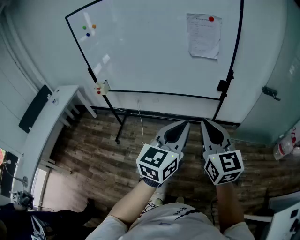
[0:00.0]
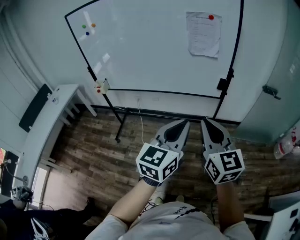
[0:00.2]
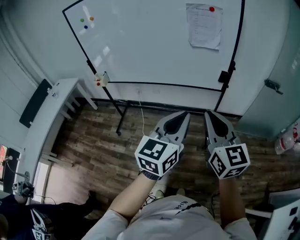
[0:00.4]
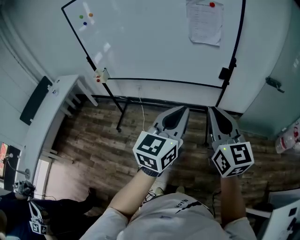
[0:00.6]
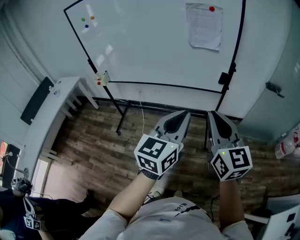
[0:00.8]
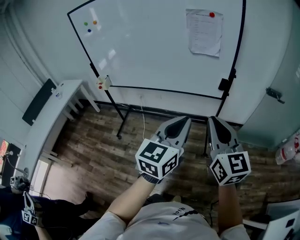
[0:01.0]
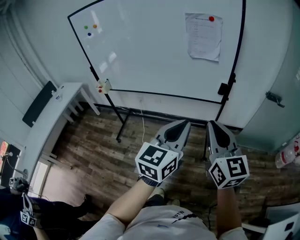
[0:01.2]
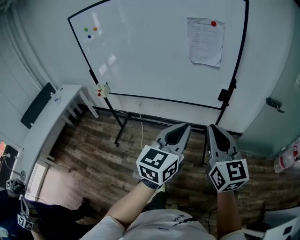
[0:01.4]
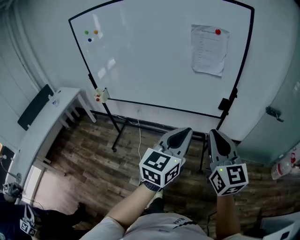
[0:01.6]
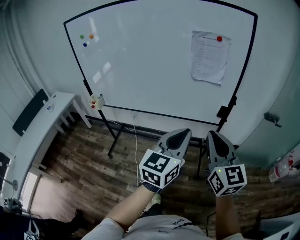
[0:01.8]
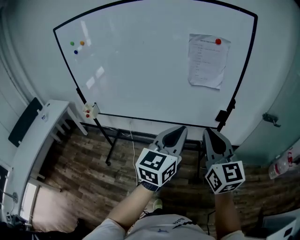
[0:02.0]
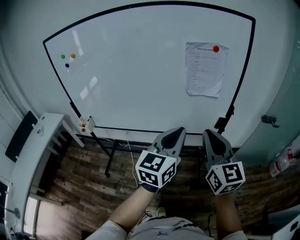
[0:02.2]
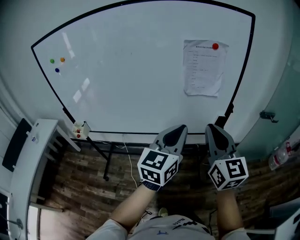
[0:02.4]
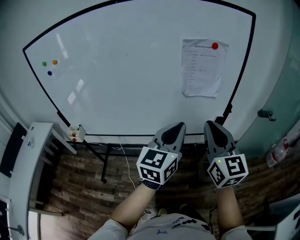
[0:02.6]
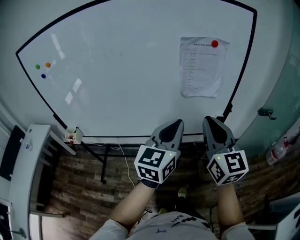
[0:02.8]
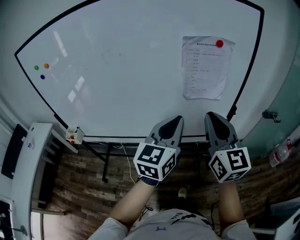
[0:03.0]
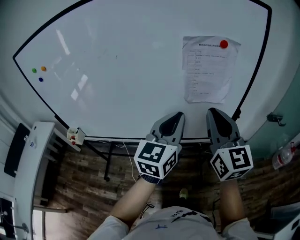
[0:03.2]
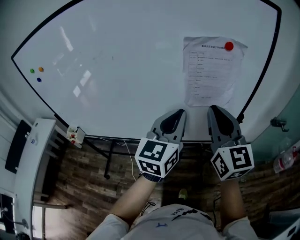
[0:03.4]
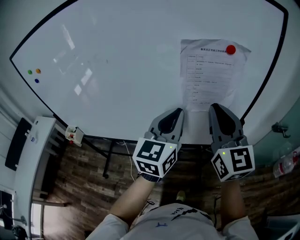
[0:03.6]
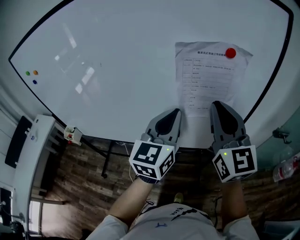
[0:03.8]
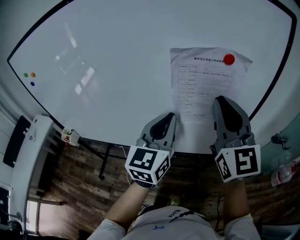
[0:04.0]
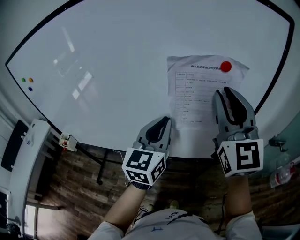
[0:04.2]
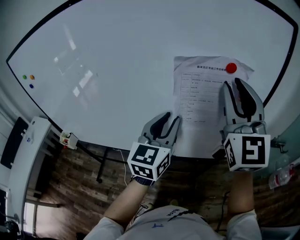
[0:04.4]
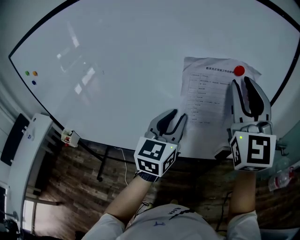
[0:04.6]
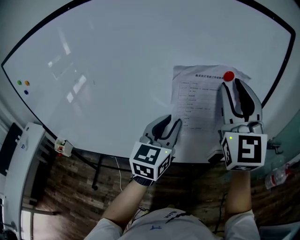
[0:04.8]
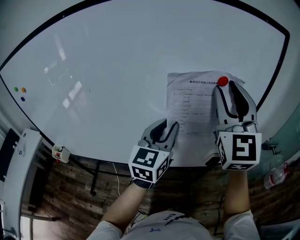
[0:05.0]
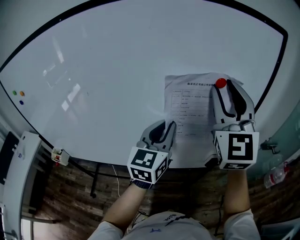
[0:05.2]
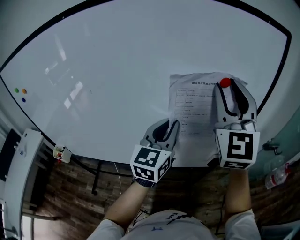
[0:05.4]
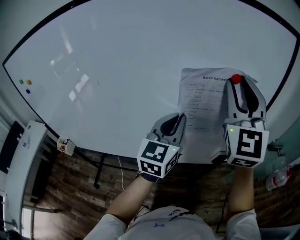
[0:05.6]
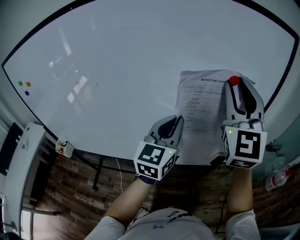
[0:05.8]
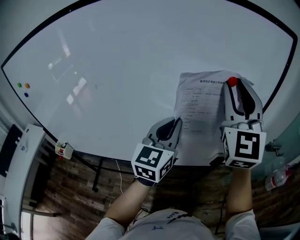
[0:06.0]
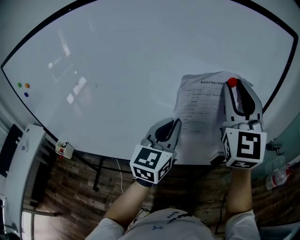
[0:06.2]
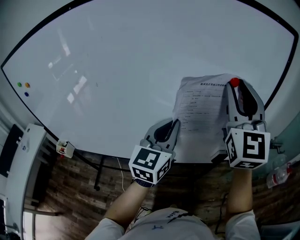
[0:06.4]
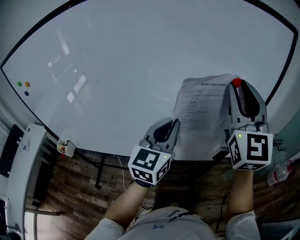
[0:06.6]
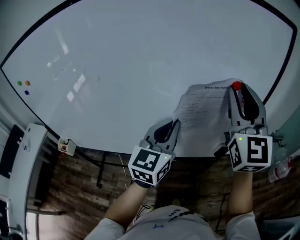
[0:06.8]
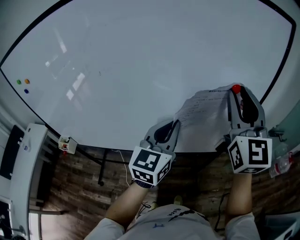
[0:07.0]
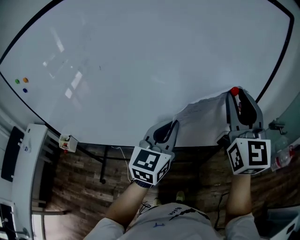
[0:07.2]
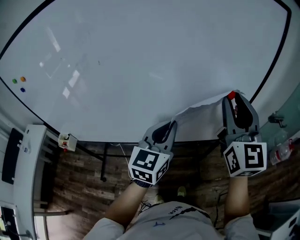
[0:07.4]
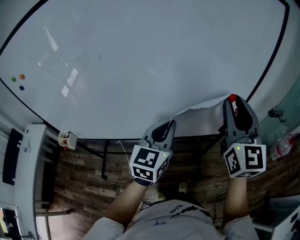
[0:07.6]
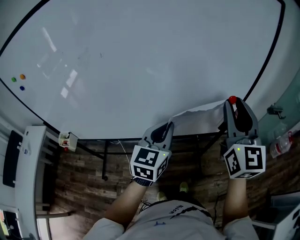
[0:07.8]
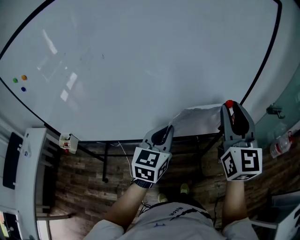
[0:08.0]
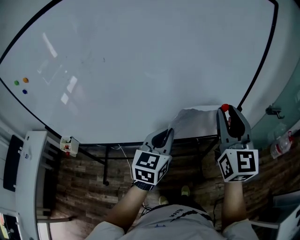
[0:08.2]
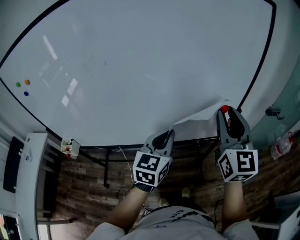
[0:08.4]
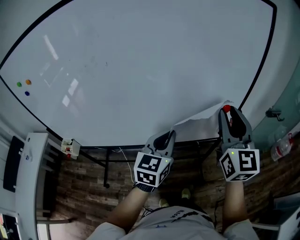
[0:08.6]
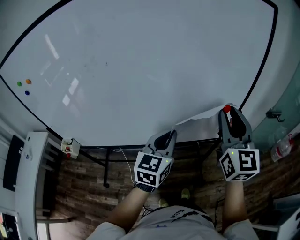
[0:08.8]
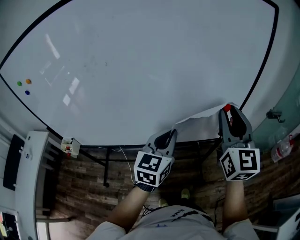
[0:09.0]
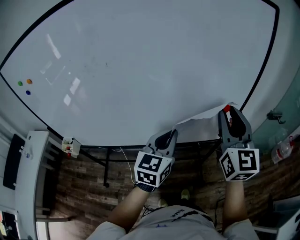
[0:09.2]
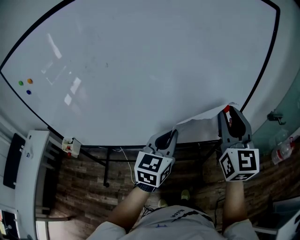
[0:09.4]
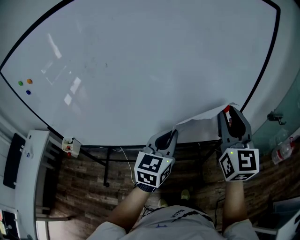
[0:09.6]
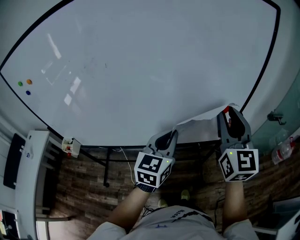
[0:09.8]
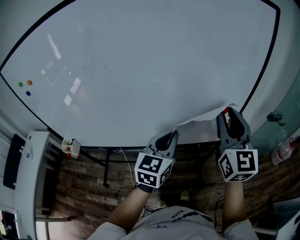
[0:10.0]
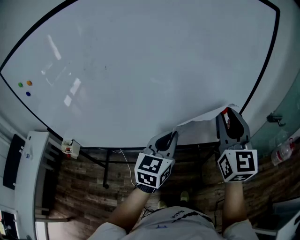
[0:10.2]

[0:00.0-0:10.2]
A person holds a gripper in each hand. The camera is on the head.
0:00.0 to 0:01.4: The right gripper heads to the right and forward, covering about 10 cm. Meanwhile the left gripper moves forward, some 5 cm.
0:01.4 to 0:03.0: The two grippers go roughly 30 cm forward.
0:03.0 to 0:04.4: The right gripper goes roughly 20 cm forward and upward, changes its angle by some 20 degrees, and opens up; the left gripper moves forward, some 15 cm, and opens its fingers.
0:04.4 to 0:05.8: The left gripper closes.
0:05.8 to 0:07.2: The left gripper travels backward and downward by roughly 10 cm. The right gripper goes roughly 10 cm downward and backward.
0:07.2 to 0:08.8: The grippers both shift downward and backward by about 10 cm.
0:08.8 to 0:10.2: Neither gripper changes place.

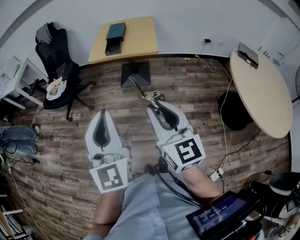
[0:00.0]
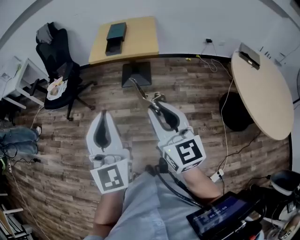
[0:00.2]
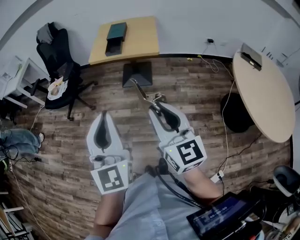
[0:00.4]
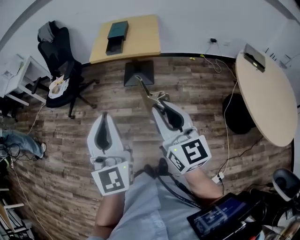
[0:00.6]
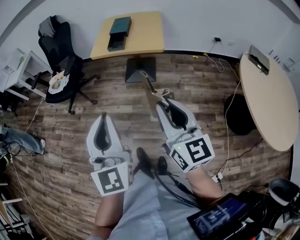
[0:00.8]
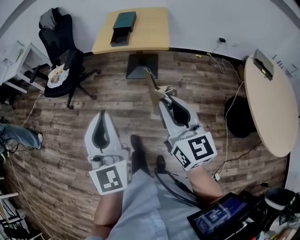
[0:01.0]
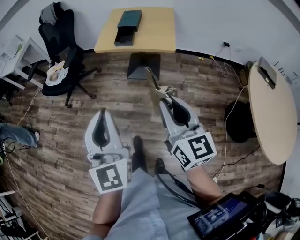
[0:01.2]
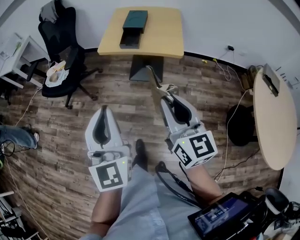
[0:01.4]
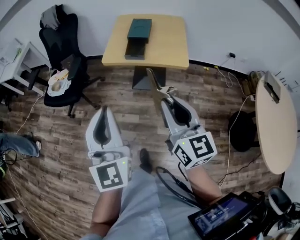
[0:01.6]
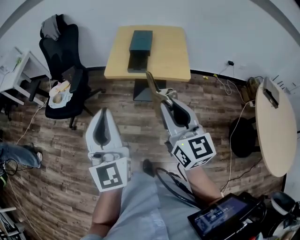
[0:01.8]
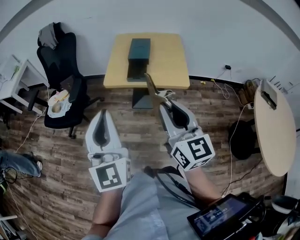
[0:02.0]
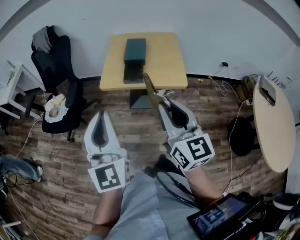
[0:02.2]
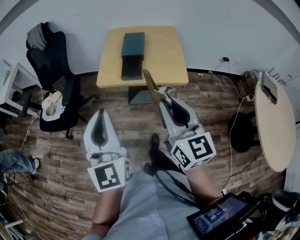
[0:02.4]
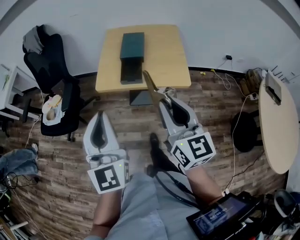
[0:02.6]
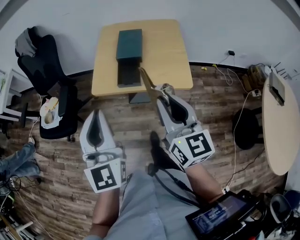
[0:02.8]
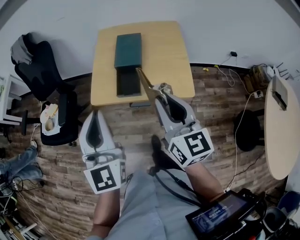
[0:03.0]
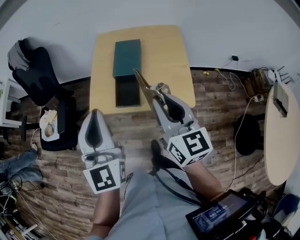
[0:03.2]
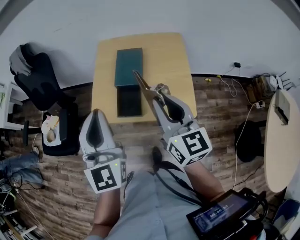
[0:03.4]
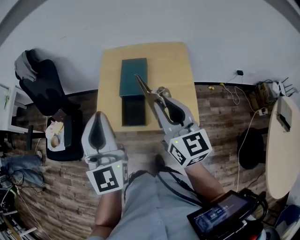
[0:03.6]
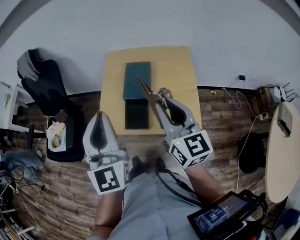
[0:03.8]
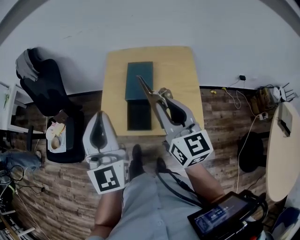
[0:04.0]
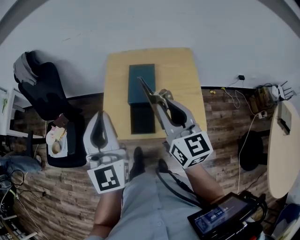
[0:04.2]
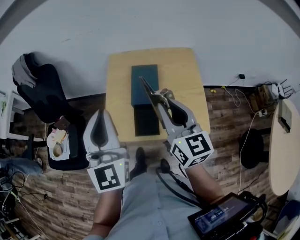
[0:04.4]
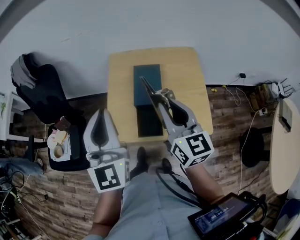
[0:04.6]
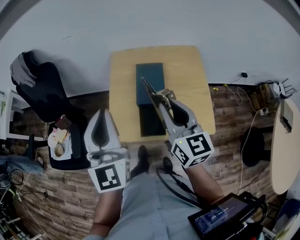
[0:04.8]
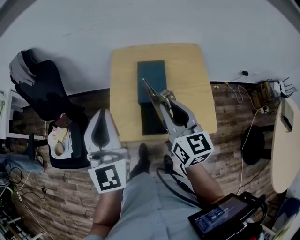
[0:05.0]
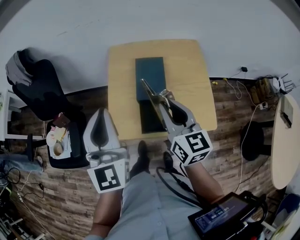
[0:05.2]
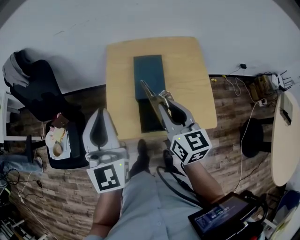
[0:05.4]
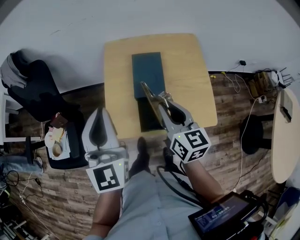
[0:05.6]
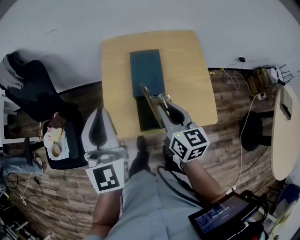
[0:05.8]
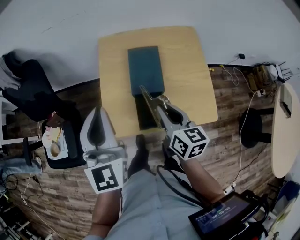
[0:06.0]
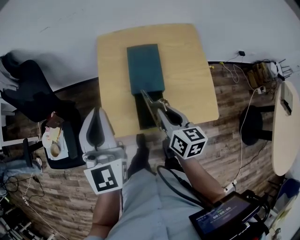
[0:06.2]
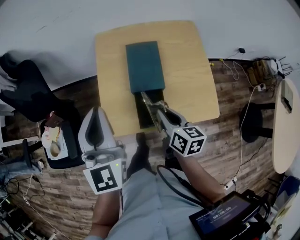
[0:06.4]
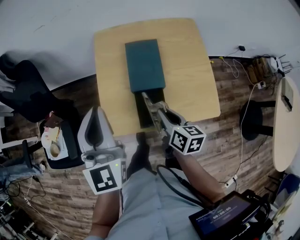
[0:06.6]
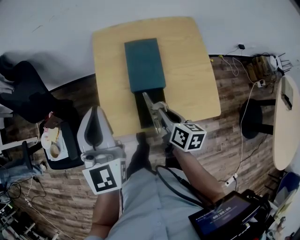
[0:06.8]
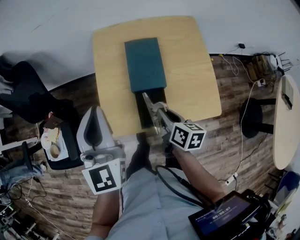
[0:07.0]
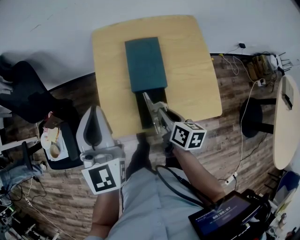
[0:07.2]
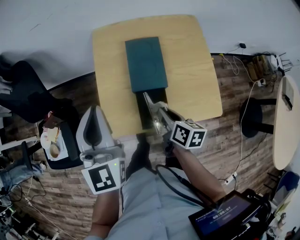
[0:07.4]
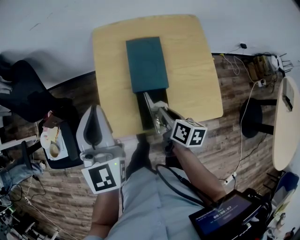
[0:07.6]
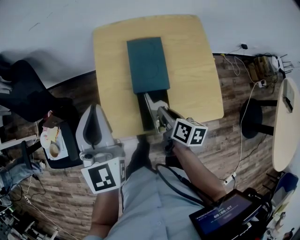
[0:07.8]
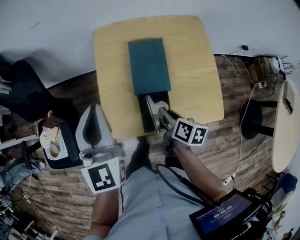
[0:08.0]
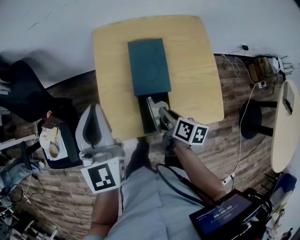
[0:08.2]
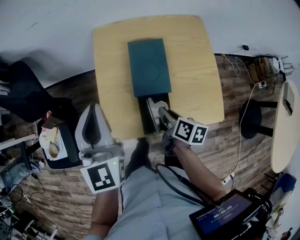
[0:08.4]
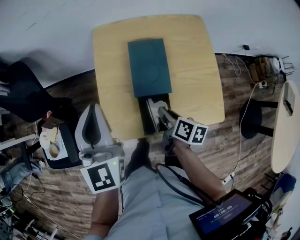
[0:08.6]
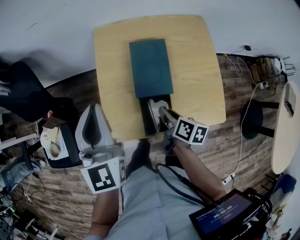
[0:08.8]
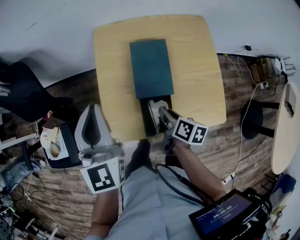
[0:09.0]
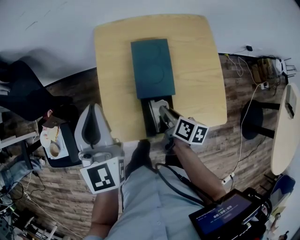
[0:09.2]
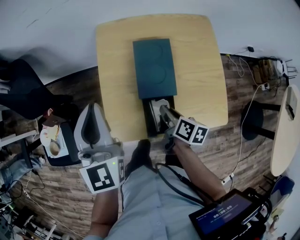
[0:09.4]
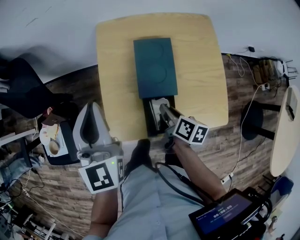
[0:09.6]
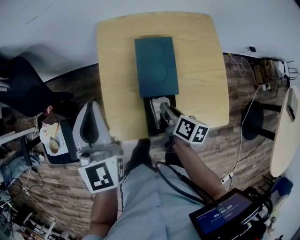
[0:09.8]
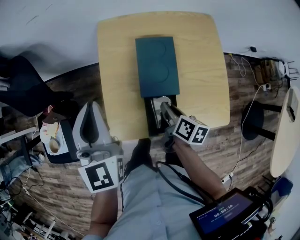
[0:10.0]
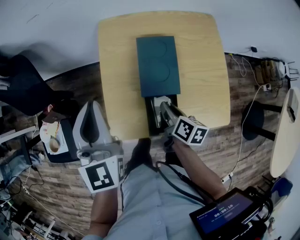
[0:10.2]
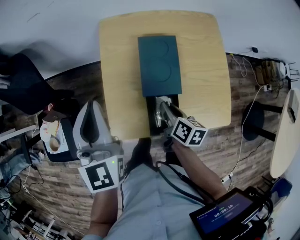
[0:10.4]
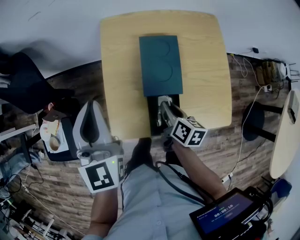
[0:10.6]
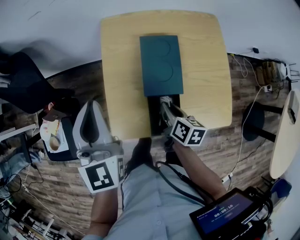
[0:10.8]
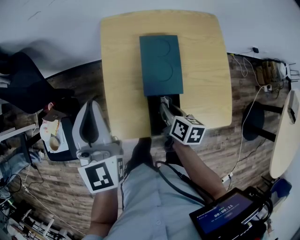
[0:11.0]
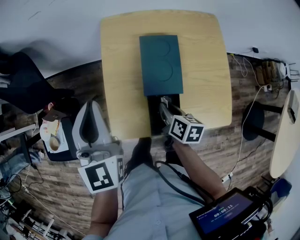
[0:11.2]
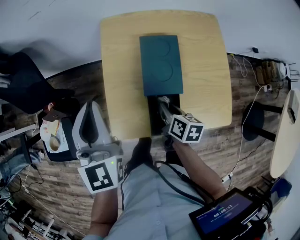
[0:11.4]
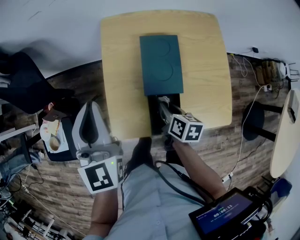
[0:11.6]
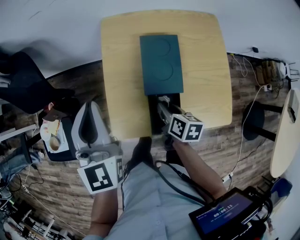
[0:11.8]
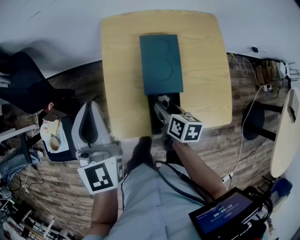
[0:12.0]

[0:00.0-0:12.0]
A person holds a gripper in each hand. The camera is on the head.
0:00.0 to 0:01.6: The grippers both shift forward by about 25 cm.
0:01.6 to 0:03.0: Both grippers travel together forward, about 30 cm.
0:03.0 to 0:04.4: The two grippers go roughly 20 cm forward.
0:04.4 to 0:06.0: The left gripper moves downward and forward, roughly 10 cm. The right gripper heads downward, covering roughly 15 cm, and swivels some 20 degrees.
0:06.0 to 0:07.6: The right gripper moves downward, roughly 10 cm, and rotates about 30 degrees; the left gripper moves some 5 cm.
0:07.6 to 0:09.0: The grippers make only small movements.
0:09.0 to 0:10.4: The grippers stay close to where they were, moving slightly.
0:10.4 to 0:12.0: The right gripper opens.

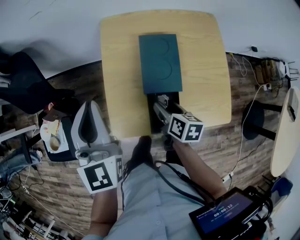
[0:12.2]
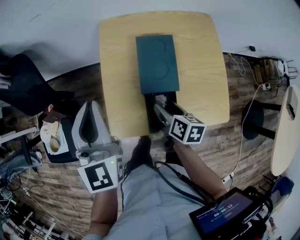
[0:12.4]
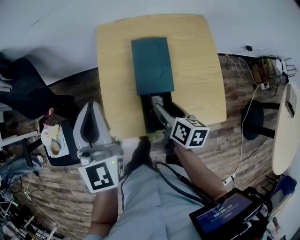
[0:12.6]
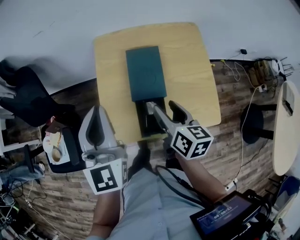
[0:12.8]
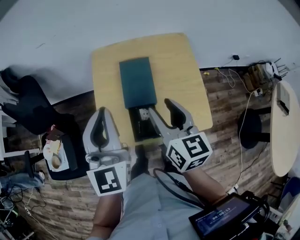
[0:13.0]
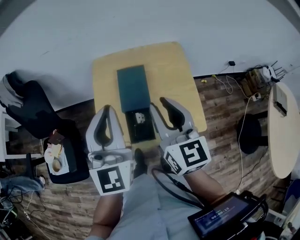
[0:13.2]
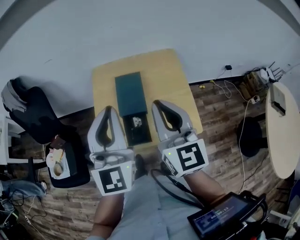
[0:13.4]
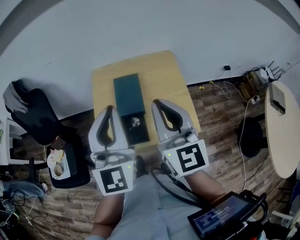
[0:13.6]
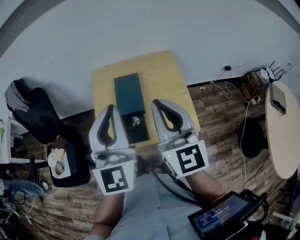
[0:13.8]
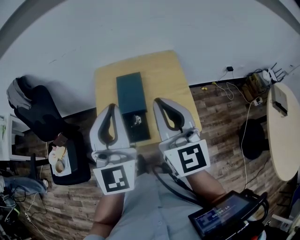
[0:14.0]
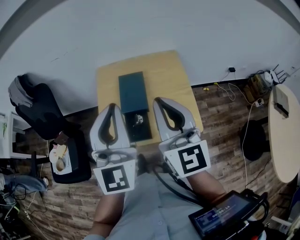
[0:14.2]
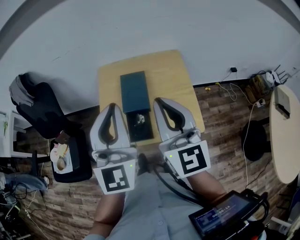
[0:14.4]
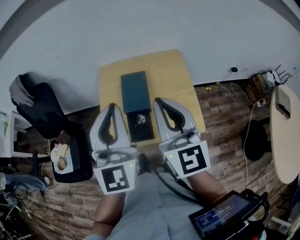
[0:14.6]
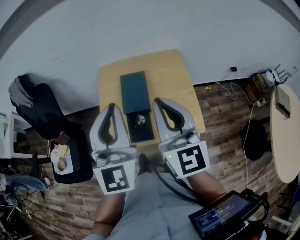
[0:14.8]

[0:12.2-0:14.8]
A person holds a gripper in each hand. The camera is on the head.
0:12.2 to 0:13.4: The right gripper shifts approximately 35 cm upward, points its fingers about 40 degrees further upward, and closes. Meanwhile the left gripper travels to the right, upward and backward by about 25 cm, and swivels about 20 degrees.
0:13.4 to 0:14.8: There are only small adjustments of the grippers.
